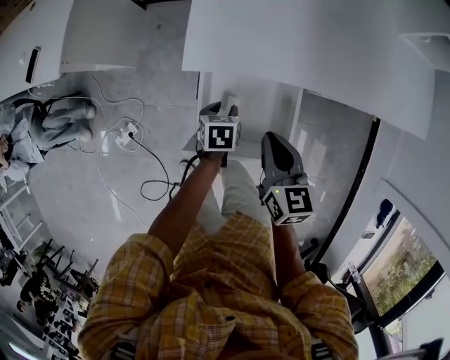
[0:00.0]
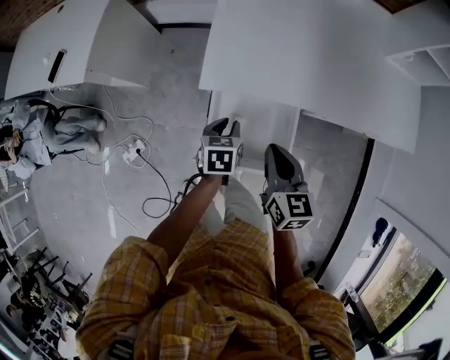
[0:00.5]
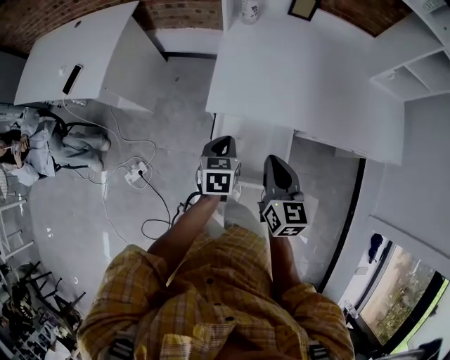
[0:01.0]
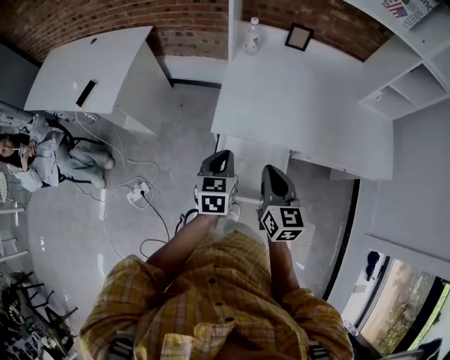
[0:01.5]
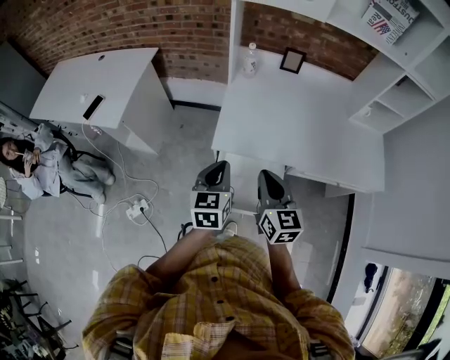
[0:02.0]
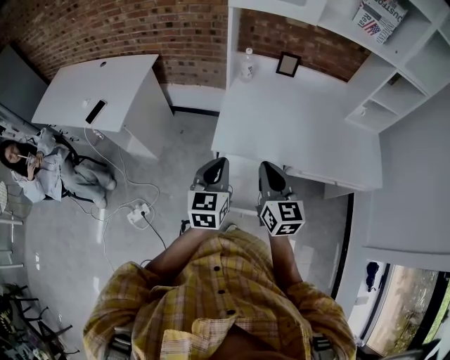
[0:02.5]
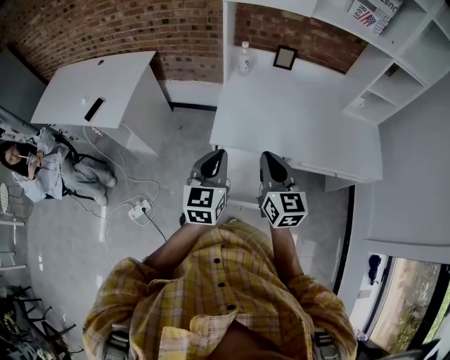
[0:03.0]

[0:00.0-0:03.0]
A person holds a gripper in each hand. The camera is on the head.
0.0 to 1.5 s: The left gripper goes roughly 30 cm upward, tips its fingers upward by some 30 degrees, and closes its fingers, while the right gripper moves upward, some 15 cm.
1.5 to 3.0 s: The grippers both shift upward by some 10 cm. The left gripper changes its angle by approximately 20 degrees.

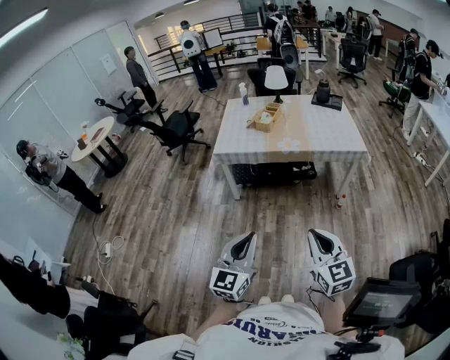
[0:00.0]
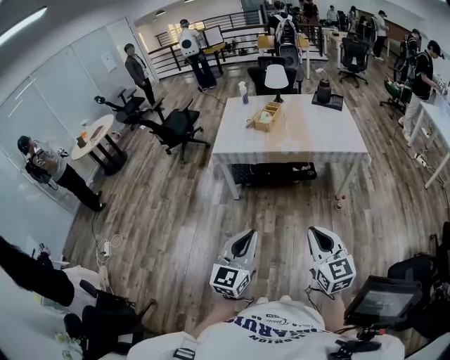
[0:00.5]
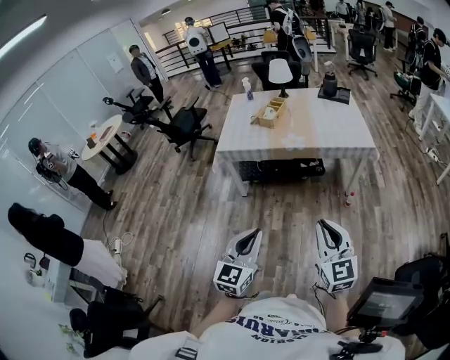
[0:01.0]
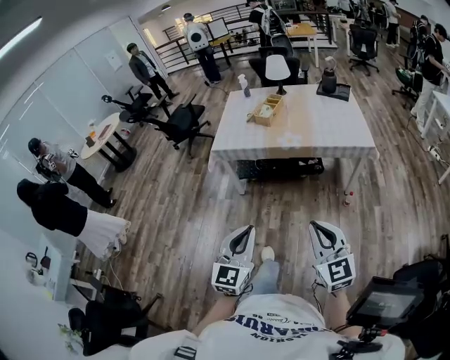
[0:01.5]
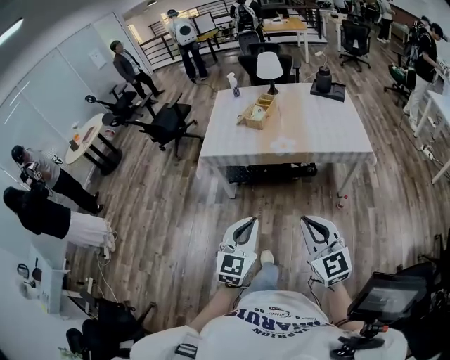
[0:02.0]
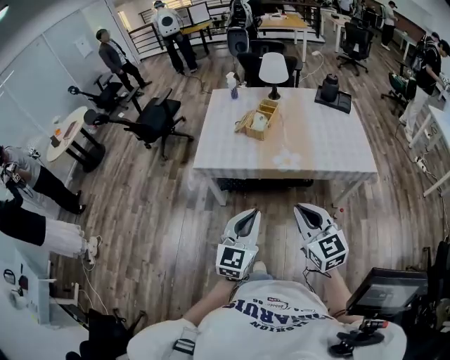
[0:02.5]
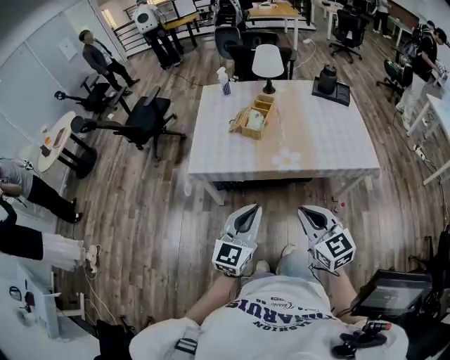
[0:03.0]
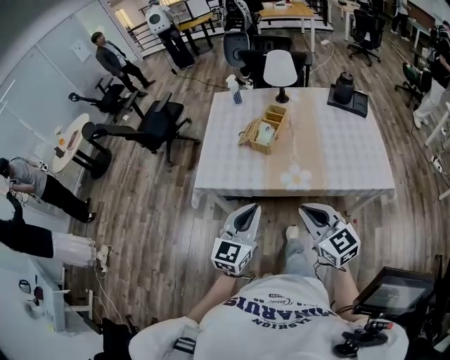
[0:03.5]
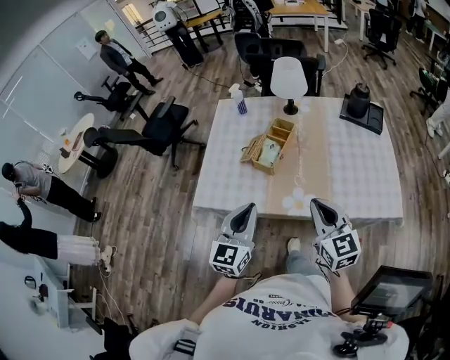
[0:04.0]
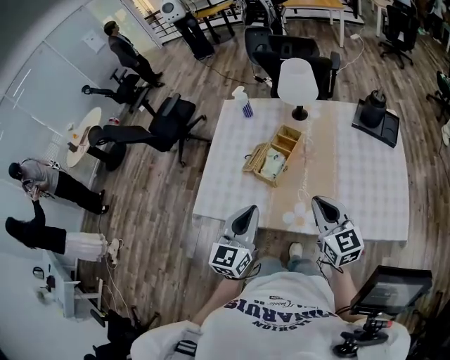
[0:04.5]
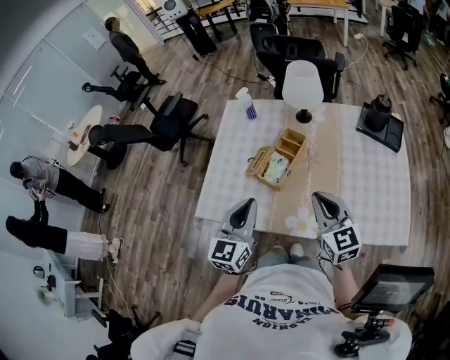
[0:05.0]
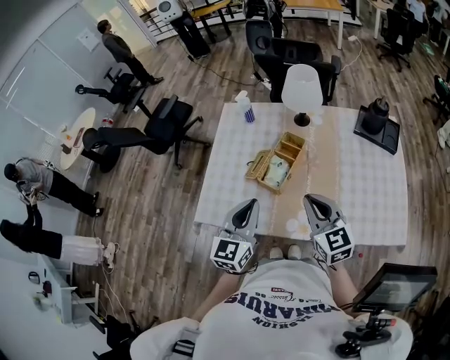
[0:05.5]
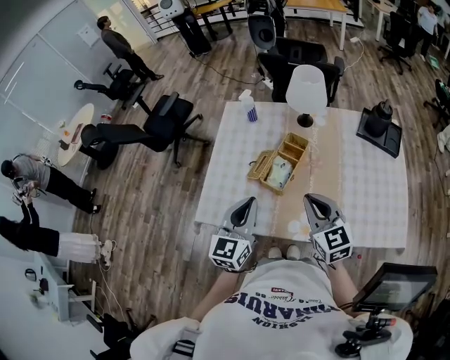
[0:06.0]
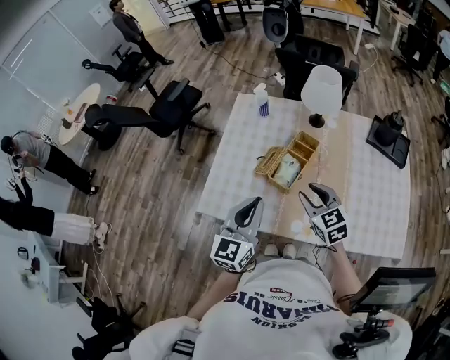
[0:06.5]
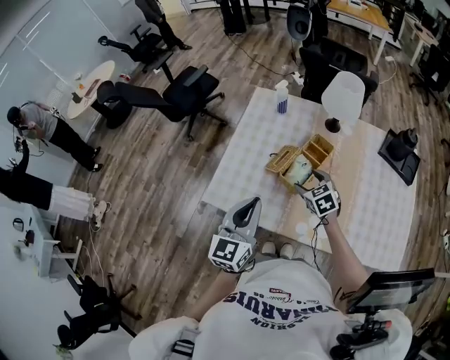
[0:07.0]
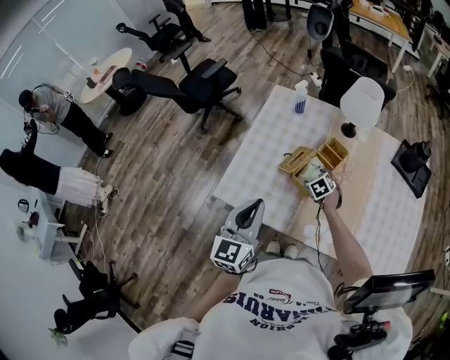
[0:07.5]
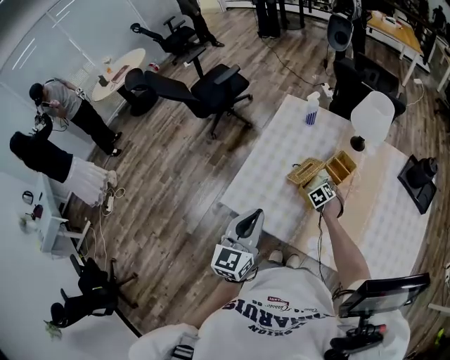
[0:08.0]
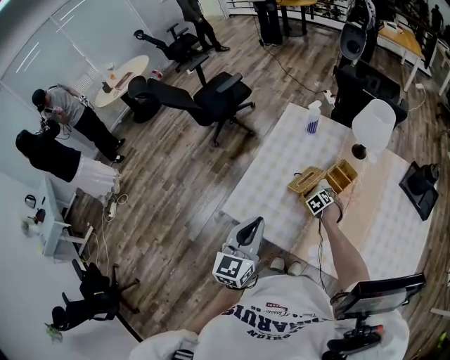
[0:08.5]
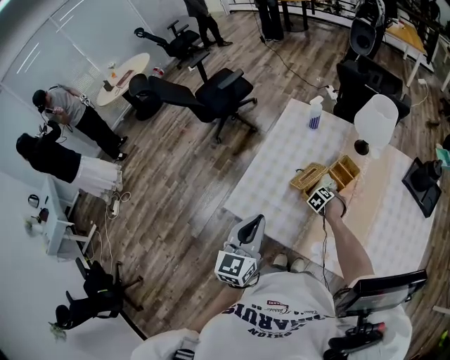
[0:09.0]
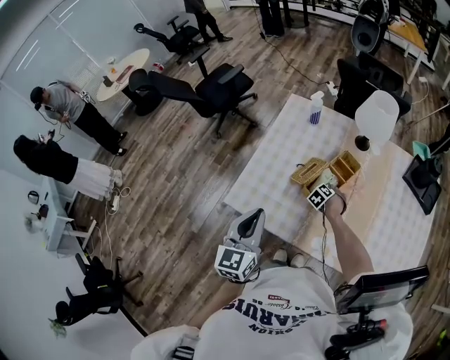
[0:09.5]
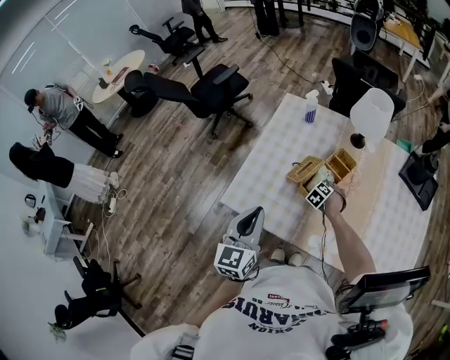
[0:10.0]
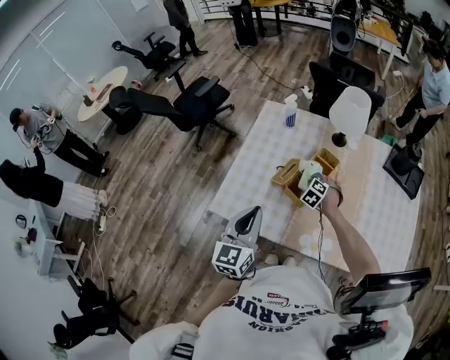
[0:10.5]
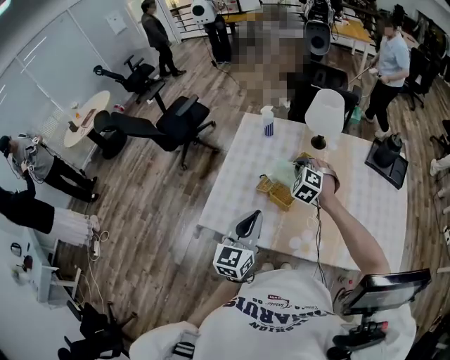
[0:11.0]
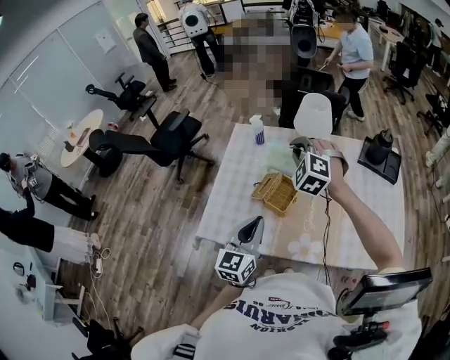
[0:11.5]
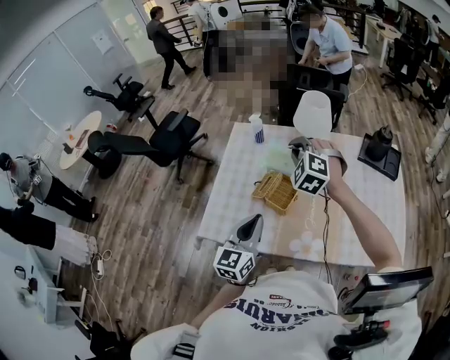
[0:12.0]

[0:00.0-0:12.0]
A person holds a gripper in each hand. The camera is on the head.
0.0 to 2.0 s: The grippers both shift forward by some 20 cm.
2.0 to 4.0 s: Both grippers are carried forward, approximately 50 cm.
4.0 to 6.0 s: The grippers both shift forward by some 15 cm.
6.0 to 8.0 s: The left gripper goes approximately 10 cm to the left. The right gripper travels downward and forward by about 40 cm, tips its fingers downward by some 50 degrees, and opens.
8.0 to 10.0 s: The right gripper closes.
10.0 to 12.0 s: The right gripper goes approximately 40 cm upward, and angles its fingers upward, by some 30 degrees. Meanwhile the left gripper heads to the right, covering approximately 10 cm.

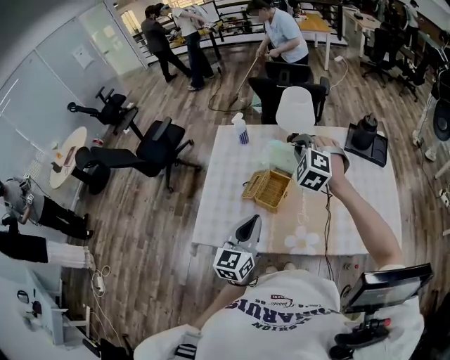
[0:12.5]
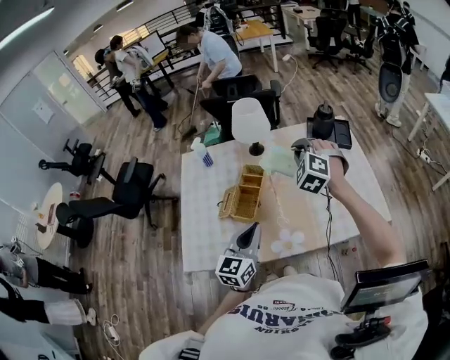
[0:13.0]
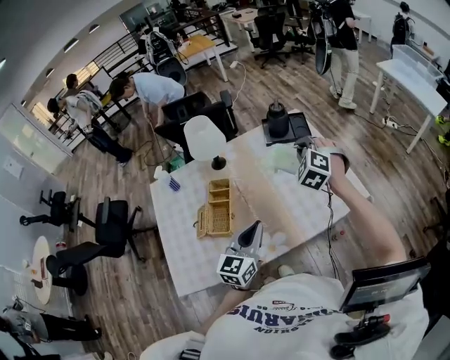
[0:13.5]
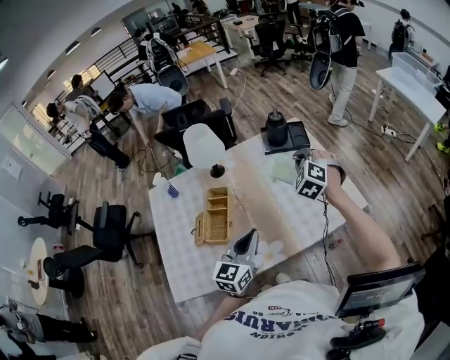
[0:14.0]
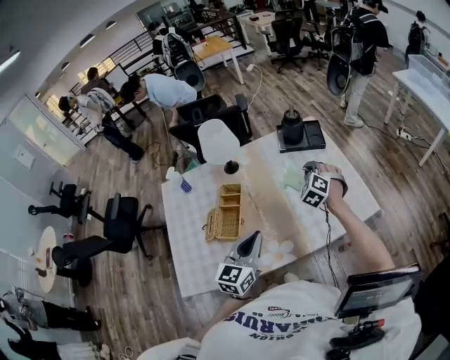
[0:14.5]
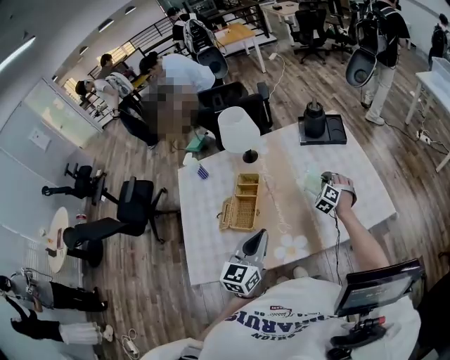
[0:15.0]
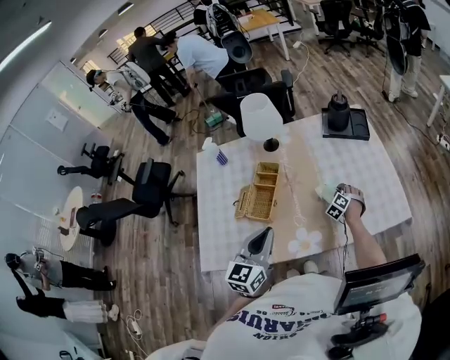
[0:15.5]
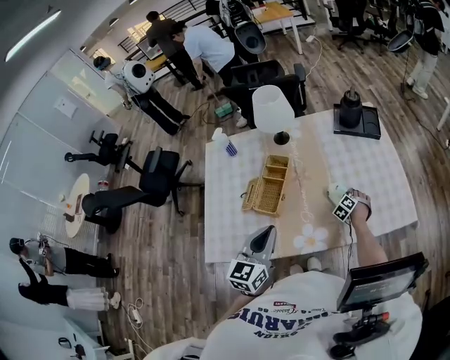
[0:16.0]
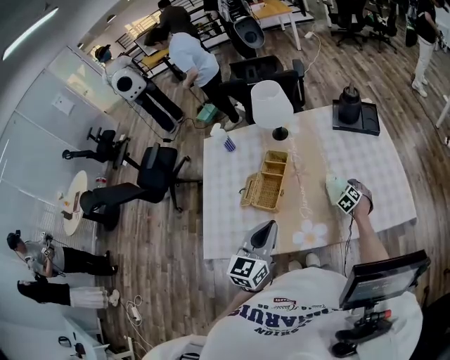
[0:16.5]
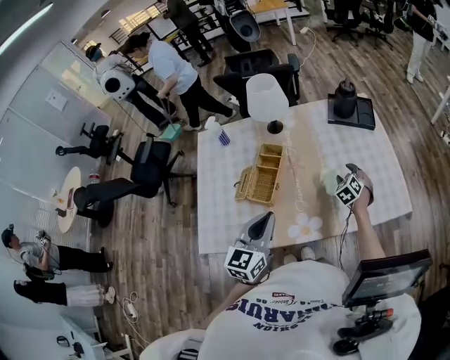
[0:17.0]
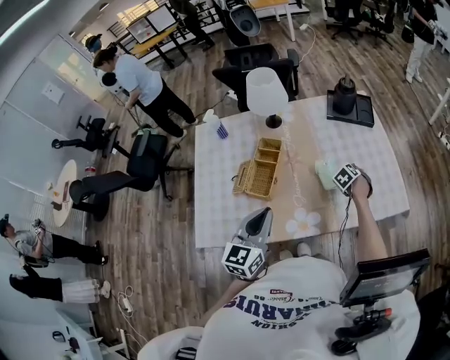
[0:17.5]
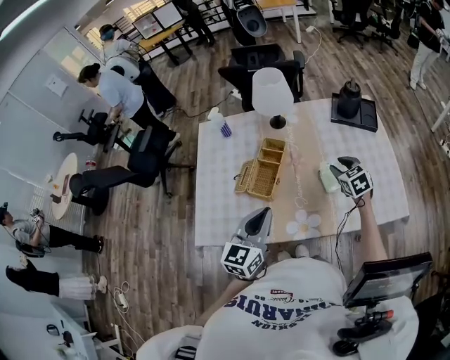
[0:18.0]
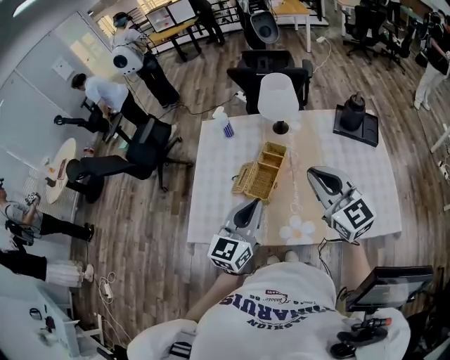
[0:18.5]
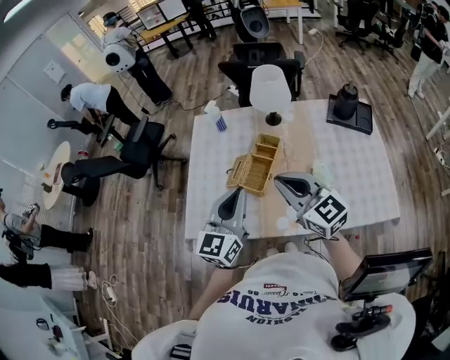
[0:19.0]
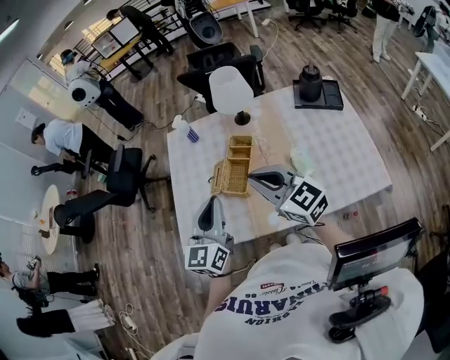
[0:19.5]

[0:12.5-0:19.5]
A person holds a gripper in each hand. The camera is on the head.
12.5 to 14.5 s: The left gripper moves about 15 cm, and changes its angle by approximately 30 degrees. Meanwhile the right gripper ends up about 35 cm from where it was, and swivels some 40 degrees.
14.5 to 16.0 s: The right gripper goes about 30 cm downward, and swivels approximately 20 degrees. Meanwhile the left gripper travels to the left by approximately 5 cm.
16.0 to 17.5 s: The right gripper is displaced upward by approximately 10 cm, turns by about 20 degrees, and opens up.
17.5 to 19.5 s: The right gripper goes approximately 35 cm upward, points its fingers about 70 degrees further upward, and closes its fingers. The left gripper ends up some 10 cm from where it was.

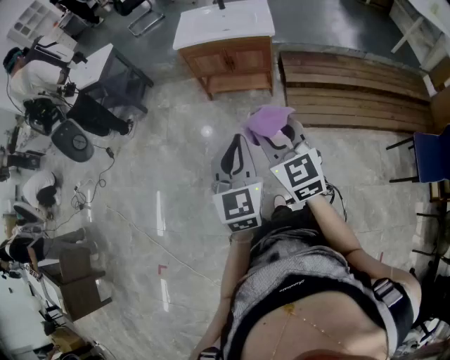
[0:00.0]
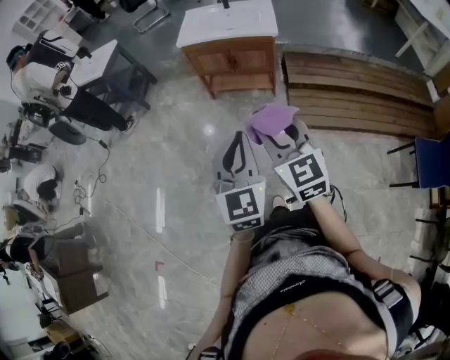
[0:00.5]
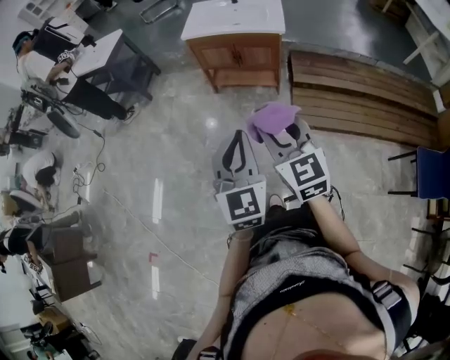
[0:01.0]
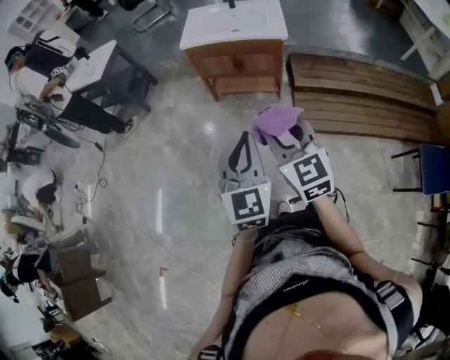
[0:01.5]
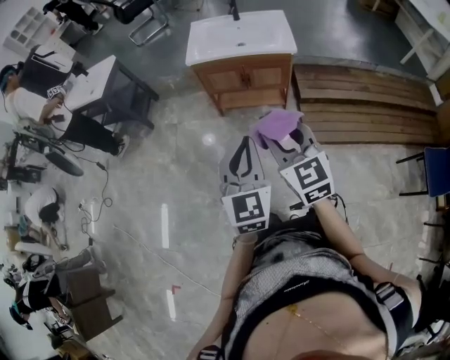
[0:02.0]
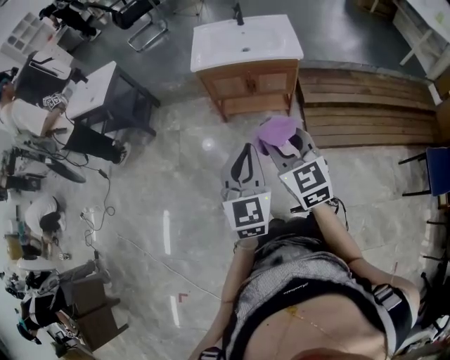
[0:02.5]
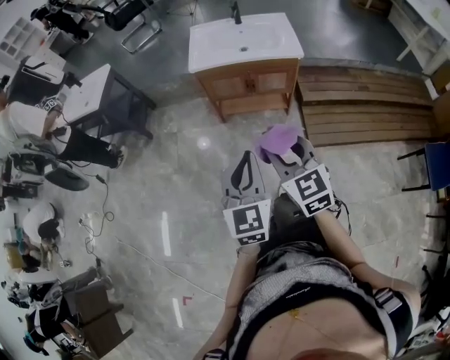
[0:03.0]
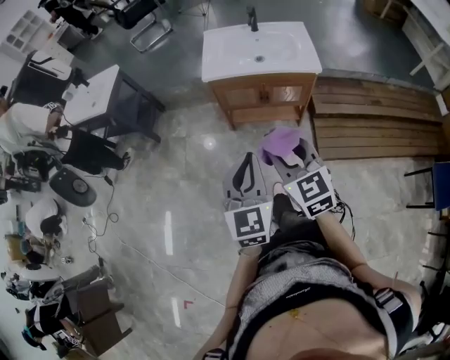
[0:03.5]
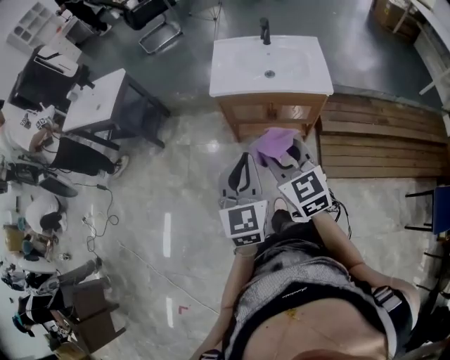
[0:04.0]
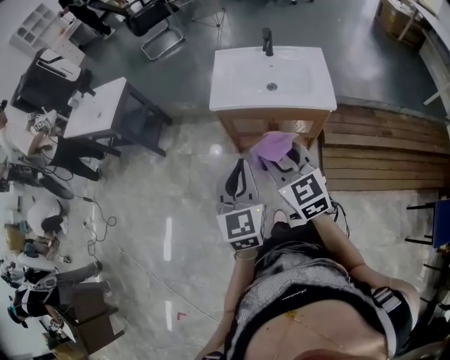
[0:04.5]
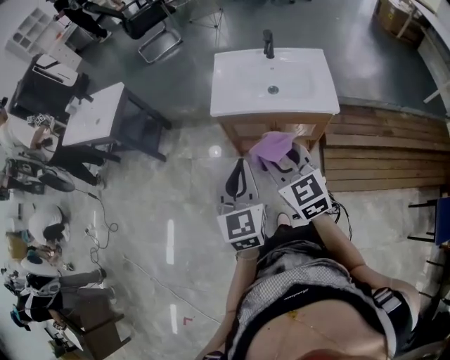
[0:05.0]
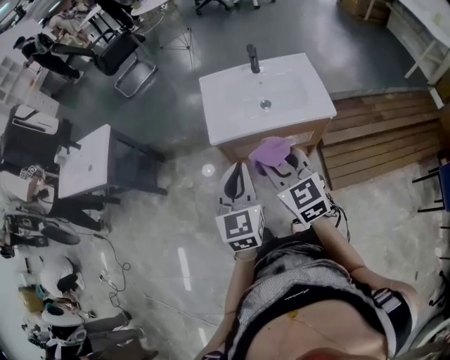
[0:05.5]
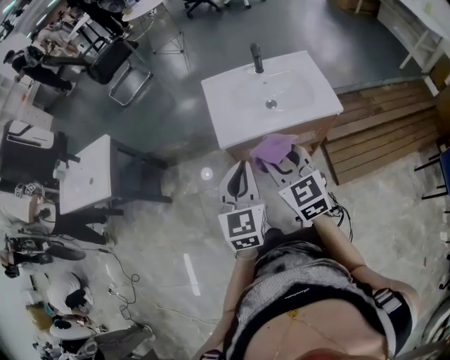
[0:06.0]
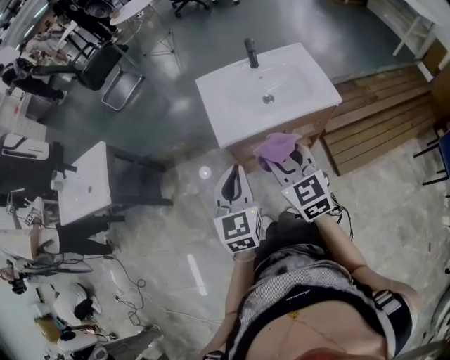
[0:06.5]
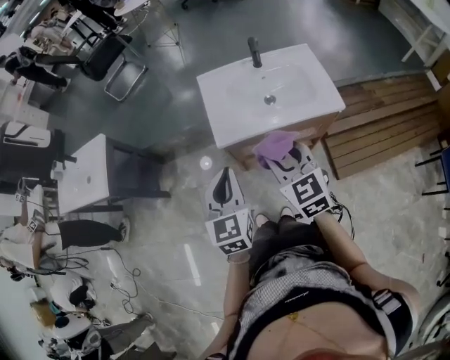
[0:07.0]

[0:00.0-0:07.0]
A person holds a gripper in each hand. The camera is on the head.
0.0 to 2.0 s: The two grippers go about 15 cm forward.
2.0 to 3.5 s: Both grippers move forward and to the left, some 15 cm.
3.5 to 5.0 s: The two grippers go approximately 20 cm forward.
5.0 to 7.0 s: The left gripper is displaced forward and to the left by some 20 cm; the right gripper heads forward, covering some 15 cm.
